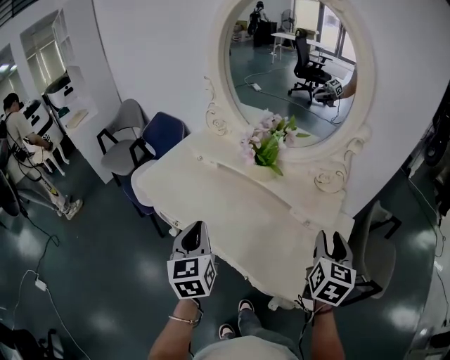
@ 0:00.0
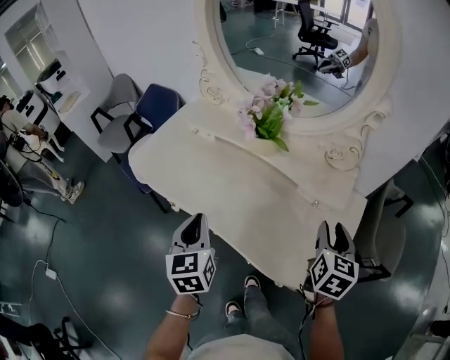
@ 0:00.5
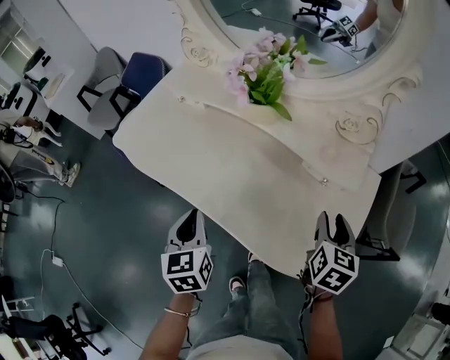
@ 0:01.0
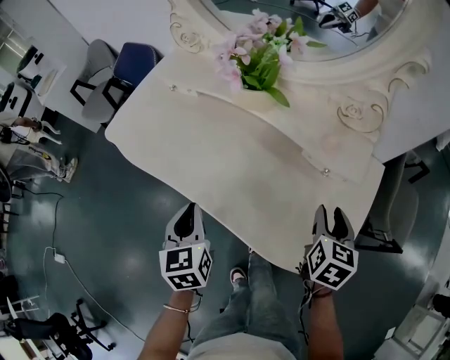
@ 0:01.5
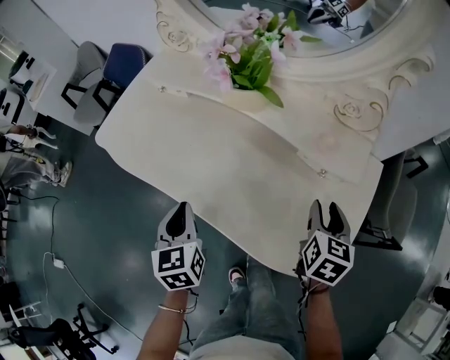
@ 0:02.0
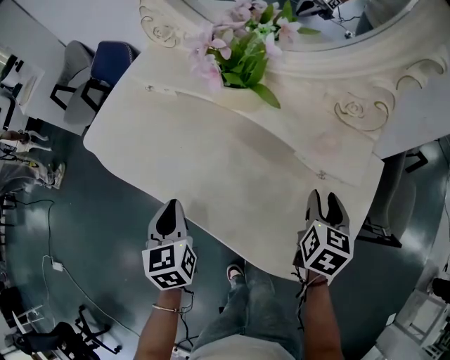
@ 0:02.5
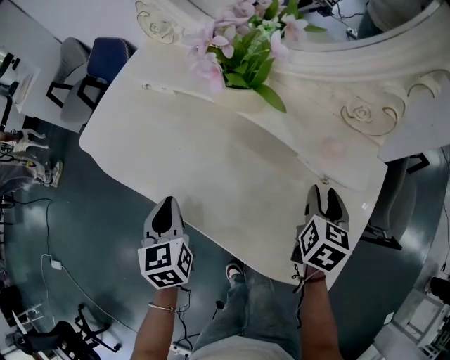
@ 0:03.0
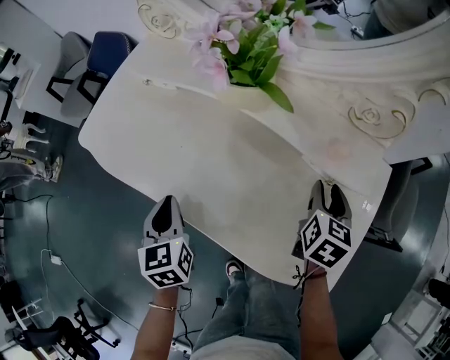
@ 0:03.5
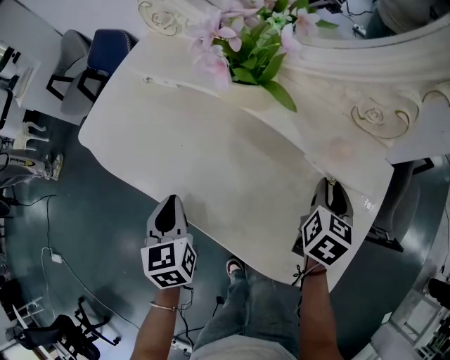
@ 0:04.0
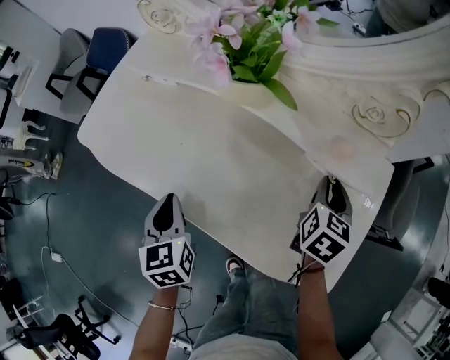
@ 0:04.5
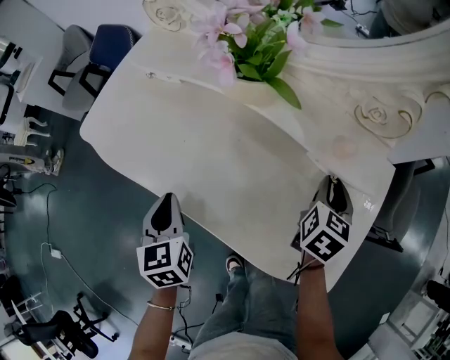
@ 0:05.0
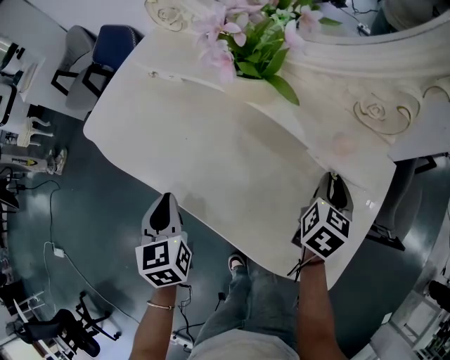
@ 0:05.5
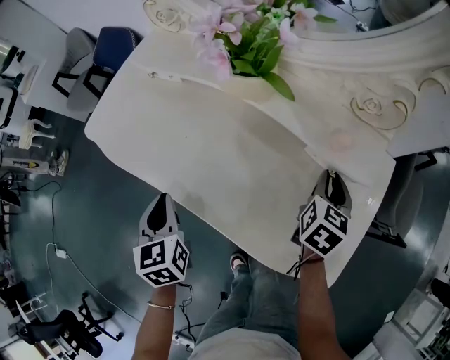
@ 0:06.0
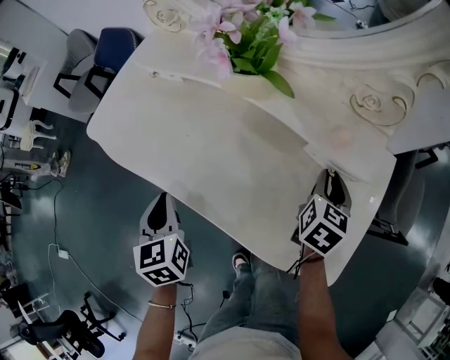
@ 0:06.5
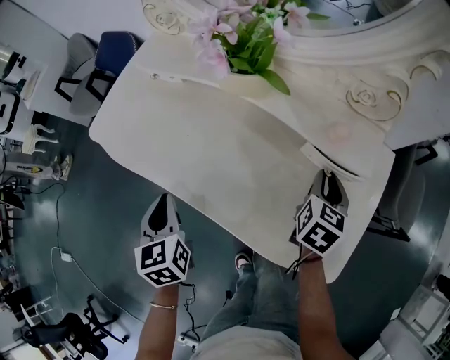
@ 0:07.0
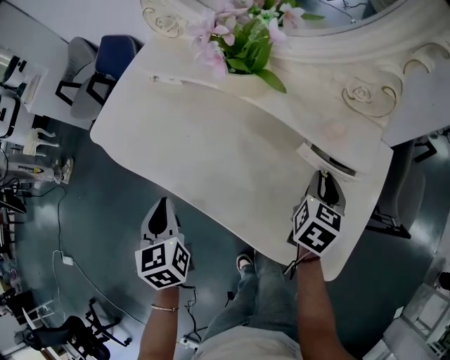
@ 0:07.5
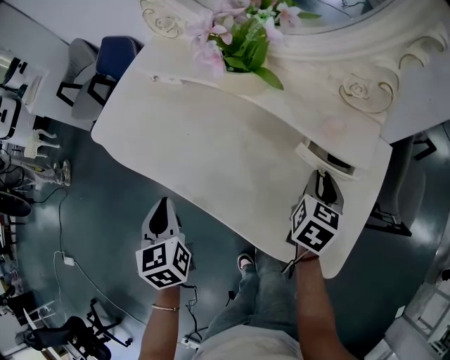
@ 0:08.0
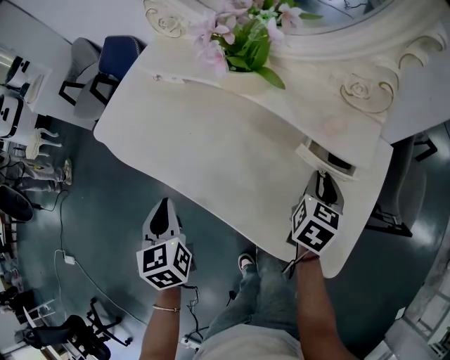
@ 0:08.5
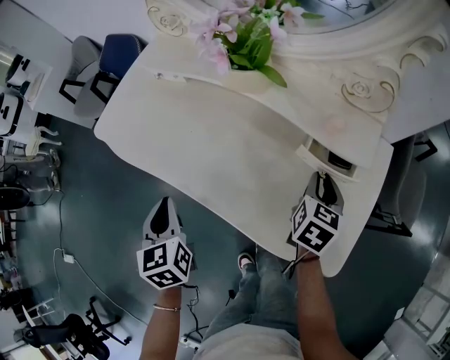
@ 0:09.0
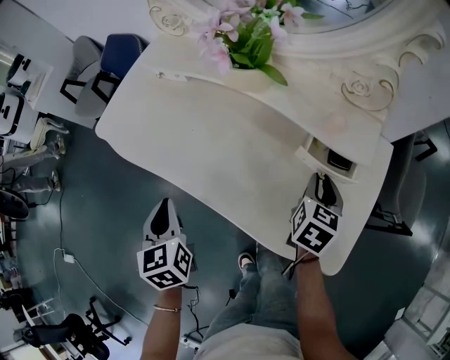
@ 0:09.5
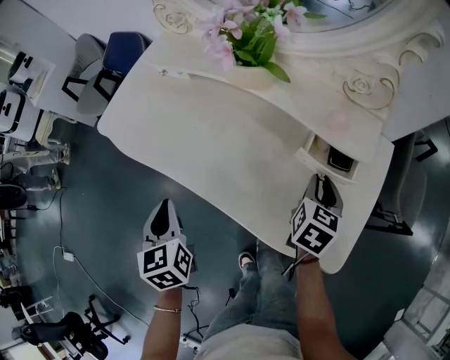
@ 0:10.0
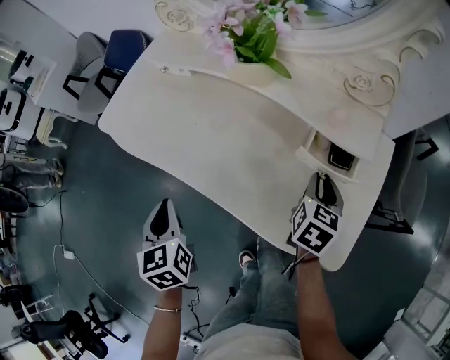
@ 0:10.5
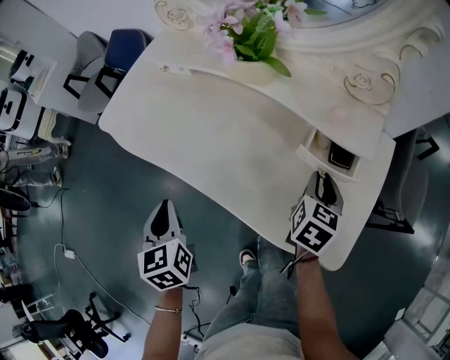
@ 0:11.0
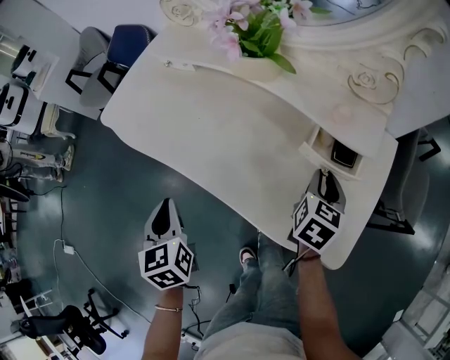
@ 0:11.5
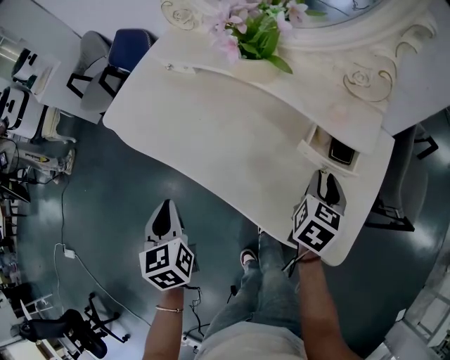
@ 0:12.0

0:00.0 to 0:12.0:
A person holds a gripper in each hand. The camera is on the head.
0:00.0 to 0:02.0: Both grippers travel together downward, approximately 15 cm.
0:02.0 to 0:04.0: The left gripper moves approximately 5 cm. The right gripper goes some 10 cm forward.
0:04.0 to 0:06.0: The grippers move only a little.
0:06.0 to 0:08.0: The grippers move only a little.
0:08.0 to 0:12.0: There are only small adjustments of the grippers.

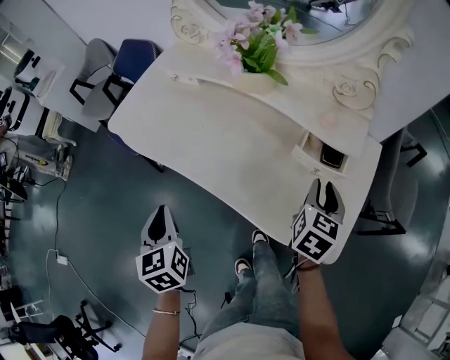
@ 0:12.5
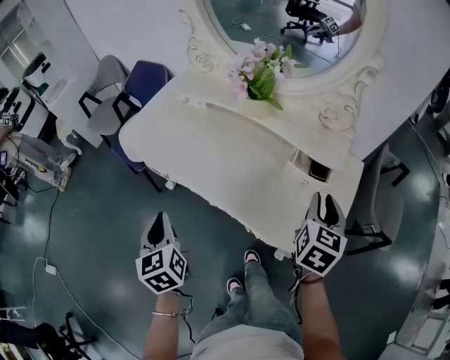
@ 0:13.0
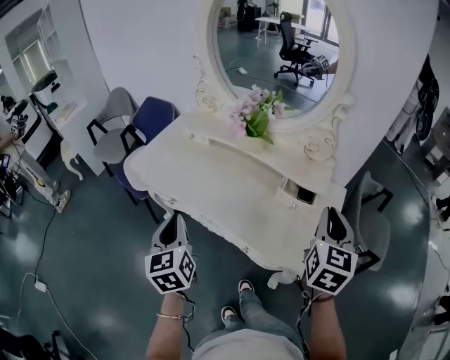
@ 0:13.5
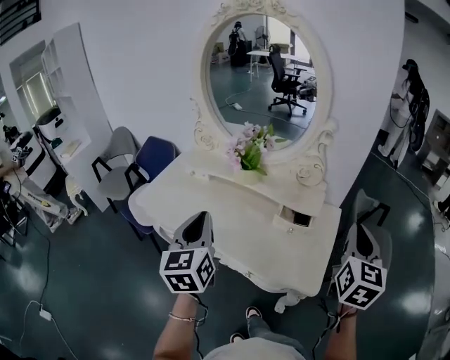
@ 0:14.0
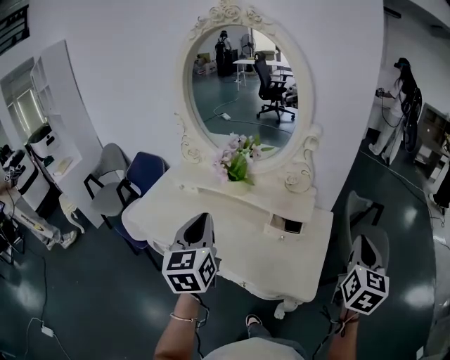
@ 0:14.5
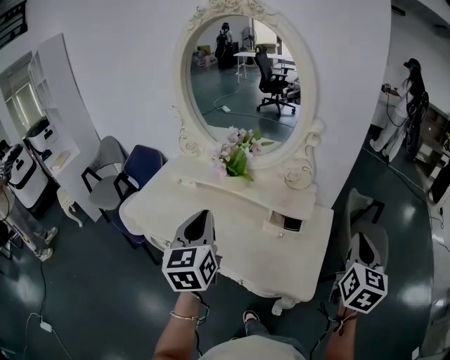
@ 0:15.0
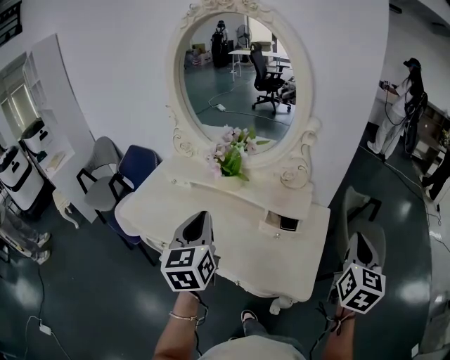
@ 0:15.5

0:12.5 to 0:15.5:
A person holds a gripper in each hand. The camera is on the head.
0:12.5 to 0:14.0: The right gripper shifts about 30 cm upward and backward, turns by about 30 degrees, and closes. Meanwhile the left gripper heads upward and to the right, covering about 25 cm, and swivels approximately 30 degrees.
0:14.0 to 0:15.5: The left gripper travels forward by approximately 5 cm, while the right gripper is displaced to the right by some 5 cm.

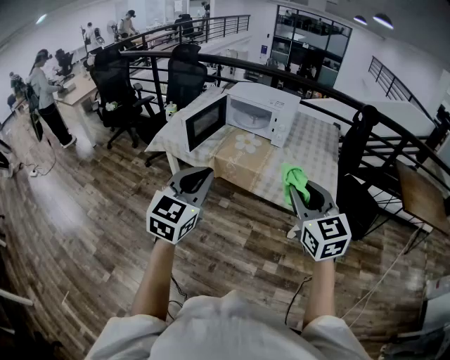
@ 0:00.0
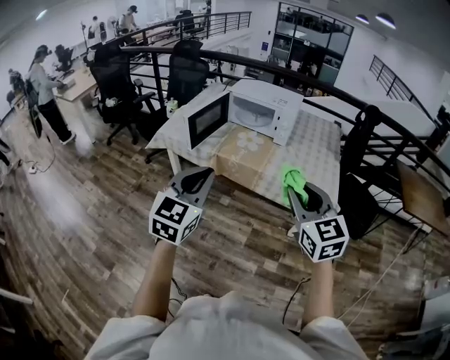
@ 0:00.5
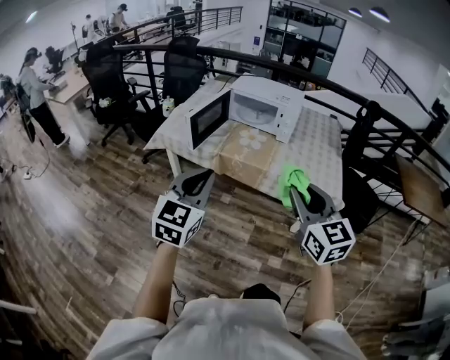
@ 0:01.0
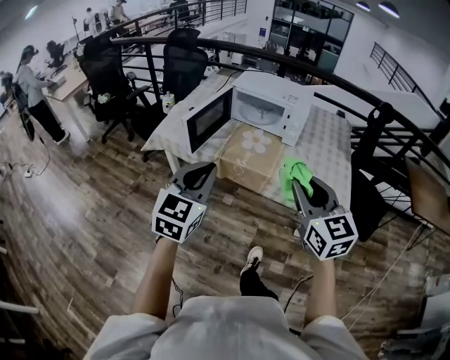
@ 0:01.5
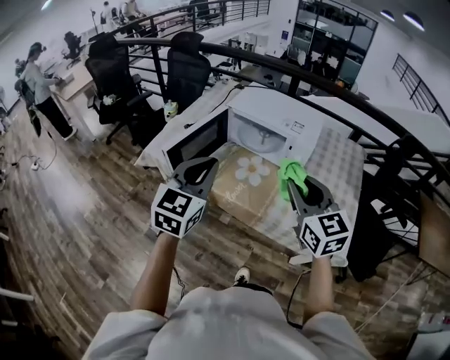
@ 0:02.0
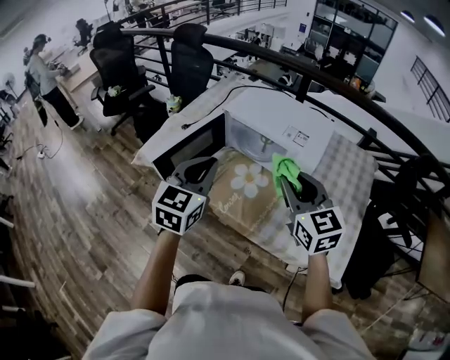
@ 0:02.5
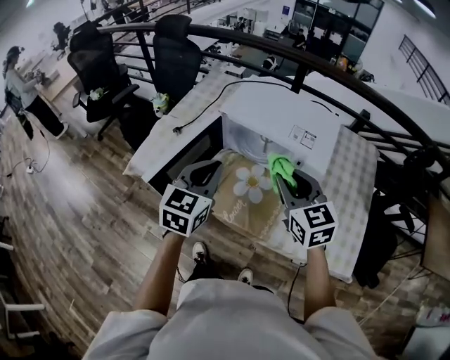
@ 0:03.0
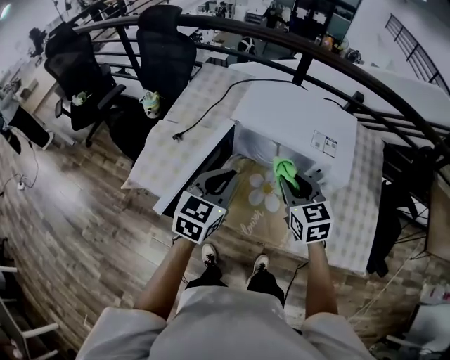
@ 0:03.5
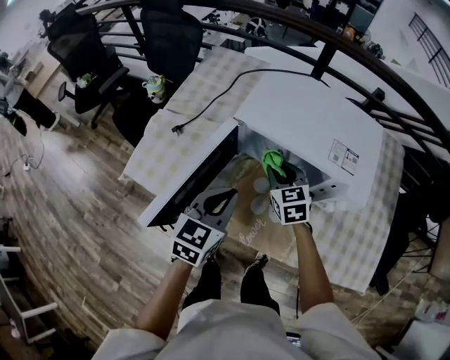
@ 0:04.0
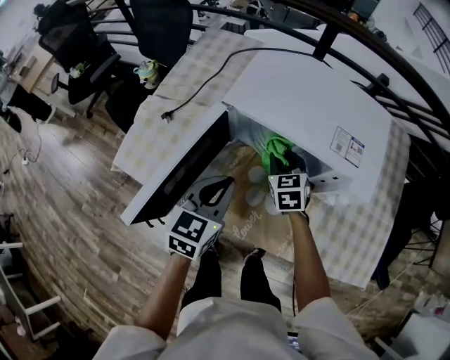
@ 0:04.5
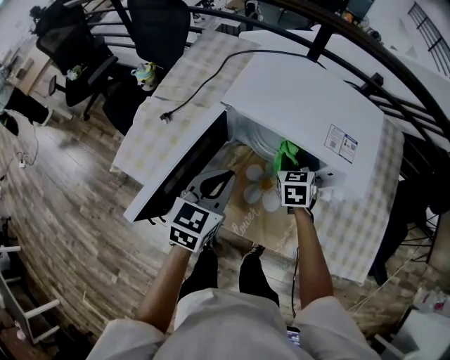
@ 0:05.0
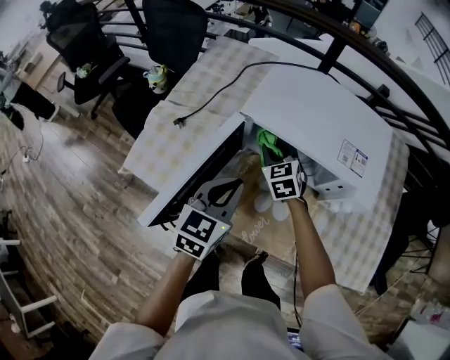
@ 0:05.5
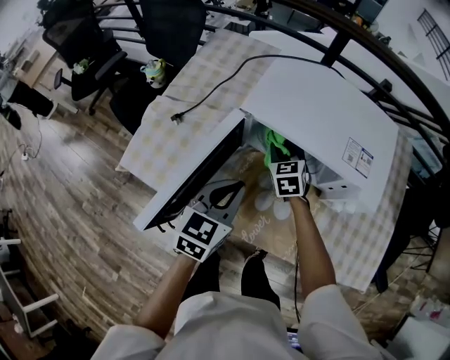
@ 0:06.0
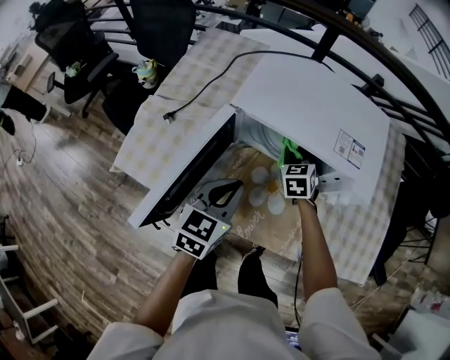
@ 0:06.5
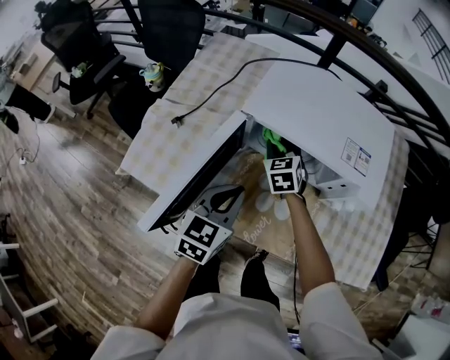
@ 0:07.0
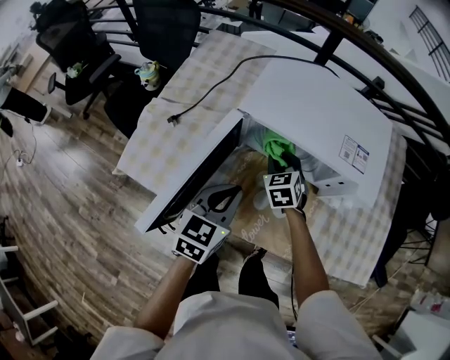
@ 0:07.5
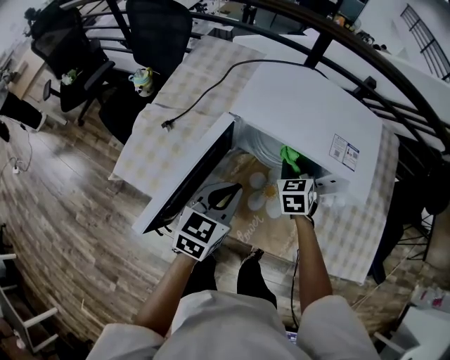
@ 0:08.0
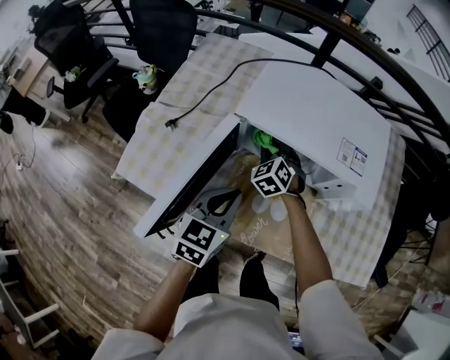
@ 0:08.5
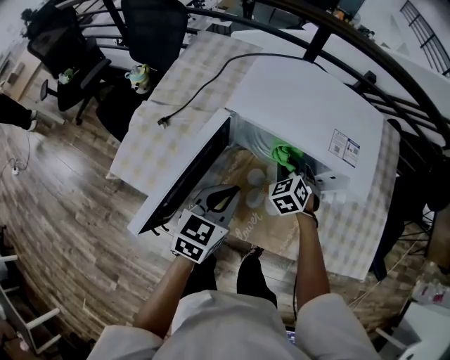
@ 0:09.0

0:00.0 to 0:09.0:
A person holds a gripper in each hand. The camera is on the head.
0:00.0 to 0:02.0: The grippers both shift forward by approximately 35 cm.
0:02.0 to 0:04.5: Both grippers move forward and downward, approximately 40 cm. The left gripper turns by about 20 degrees, while the right gripper swivels roughly 30 degrees.
0:04.5 to 0:07.0: The right gripper swings left and right, some 15 cm each way, with 3 reversals.
0:07.0 to 0:09.0: The right gripper swings left and right, about 10 cm each way, with 2 reversals, and turns by about 20 degrees.

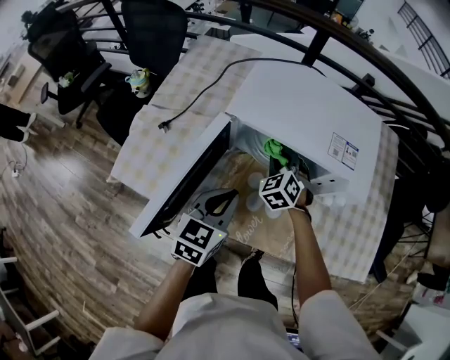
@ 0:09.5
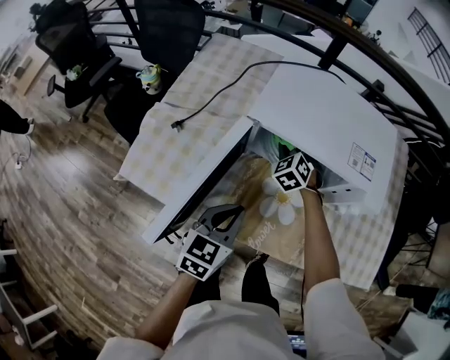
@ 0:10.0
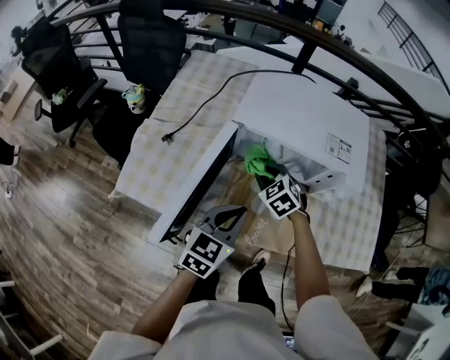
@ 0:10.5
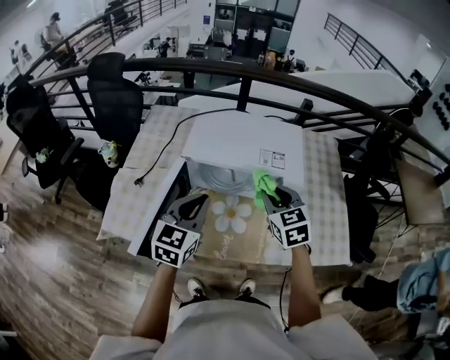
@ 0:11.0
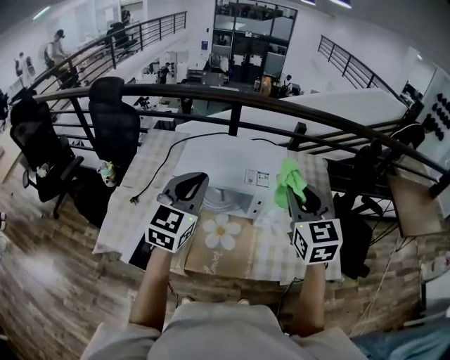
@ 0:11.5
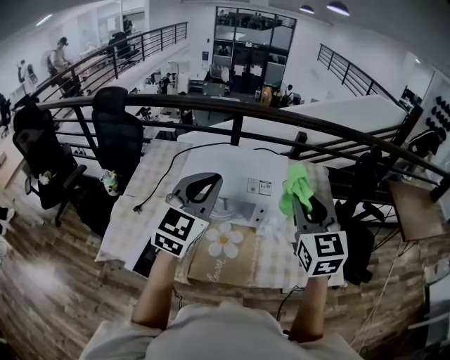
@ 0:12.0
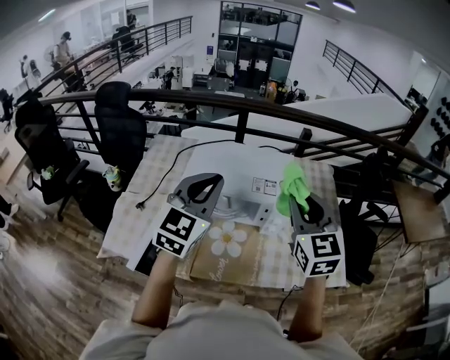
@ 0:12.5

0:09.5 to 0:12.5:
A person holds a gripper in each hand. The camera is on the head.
0:09.5 to 0:11.0: The left gripper travels upward by approximately 15 cm. The right gripper travels upward, backward and to the right by some 25 cm, and changes its angle by approximately 30 degrees.
0:11.0 to 0:12.5: Both grippers move upward, approximately 15 cm. The left gripper turns by roughly 20 degrees; the right gripper turns by some 20 degrees.
